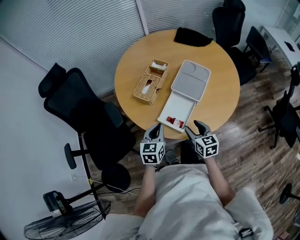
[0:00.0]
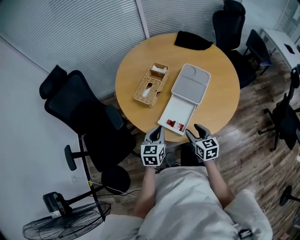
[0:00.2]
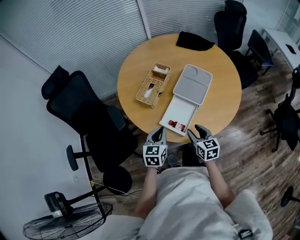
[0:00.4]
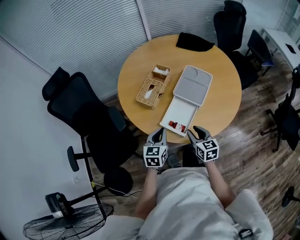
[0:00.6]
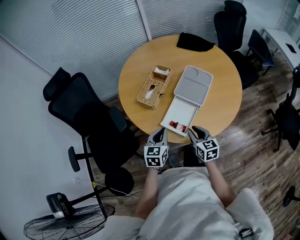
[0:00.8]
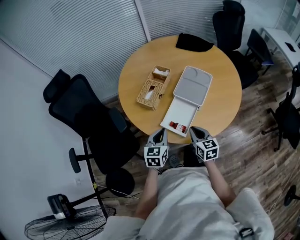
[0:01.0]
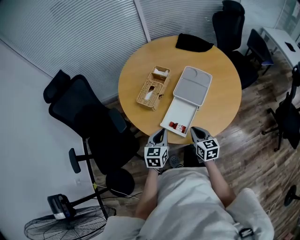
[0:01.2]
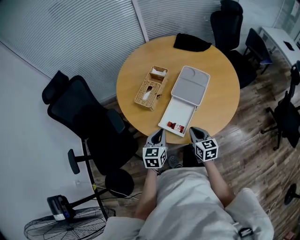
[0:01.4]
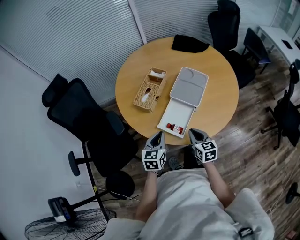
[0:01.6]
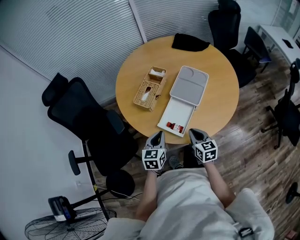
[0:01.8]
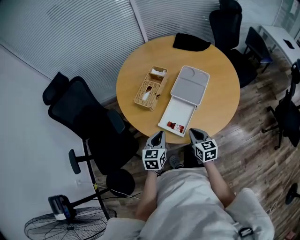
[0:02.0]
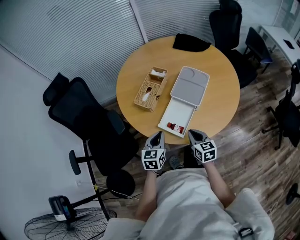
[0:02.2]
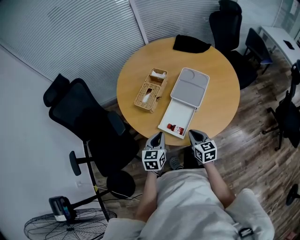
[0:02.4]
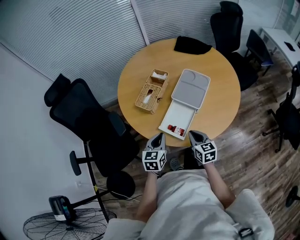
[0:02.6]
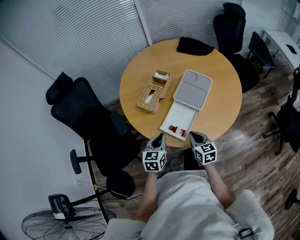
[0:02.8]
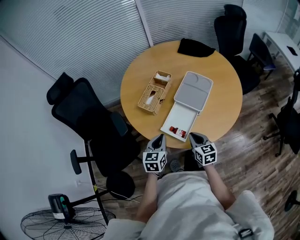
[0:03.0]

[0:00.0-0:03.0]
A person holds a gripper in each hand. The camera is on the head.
0.0 to 1.6 s: The right gripper closes up.
1.6 to 3.0 s: Both grippers stay about where they are.

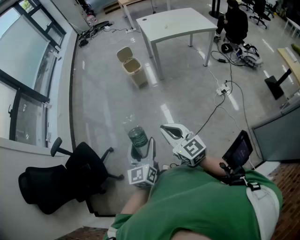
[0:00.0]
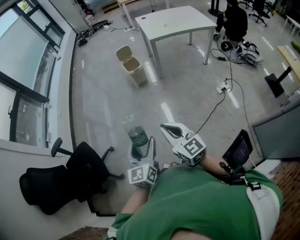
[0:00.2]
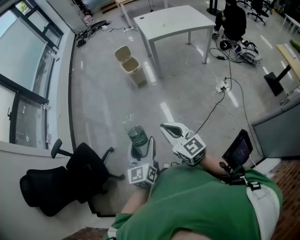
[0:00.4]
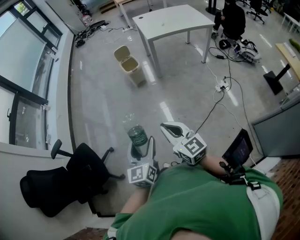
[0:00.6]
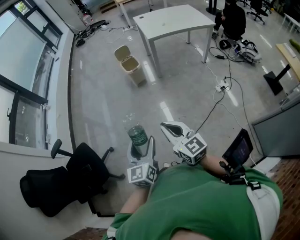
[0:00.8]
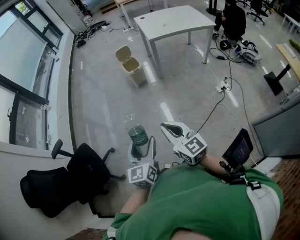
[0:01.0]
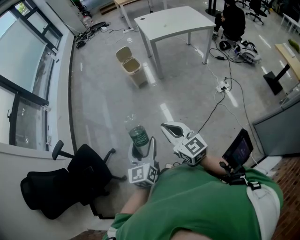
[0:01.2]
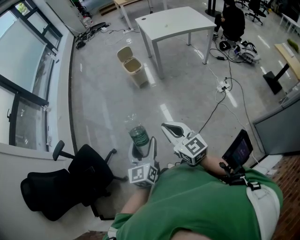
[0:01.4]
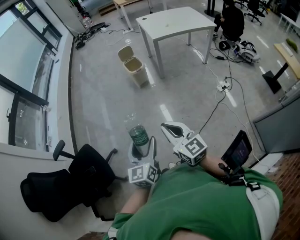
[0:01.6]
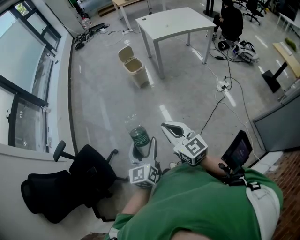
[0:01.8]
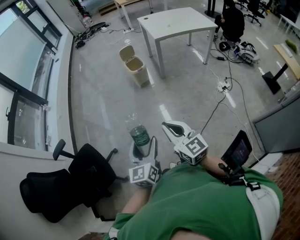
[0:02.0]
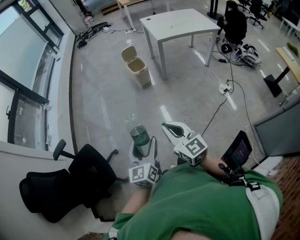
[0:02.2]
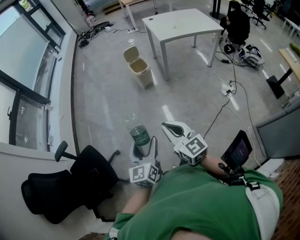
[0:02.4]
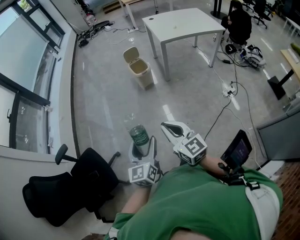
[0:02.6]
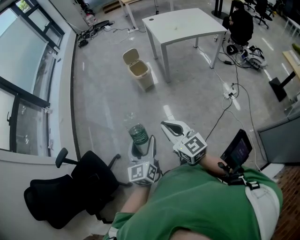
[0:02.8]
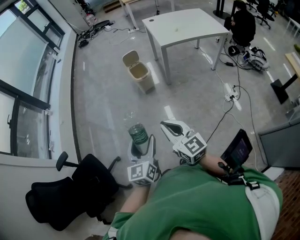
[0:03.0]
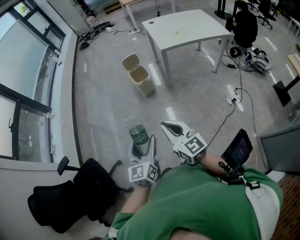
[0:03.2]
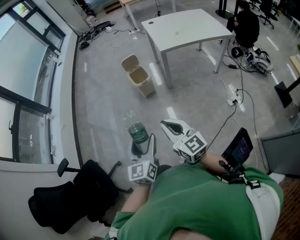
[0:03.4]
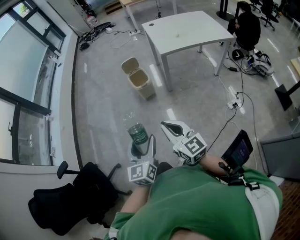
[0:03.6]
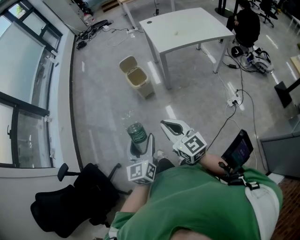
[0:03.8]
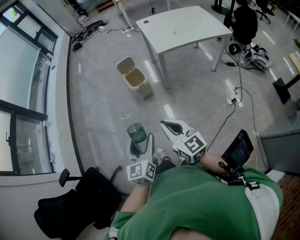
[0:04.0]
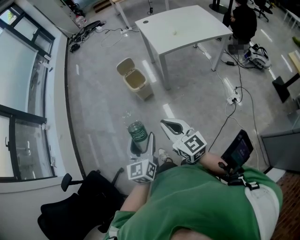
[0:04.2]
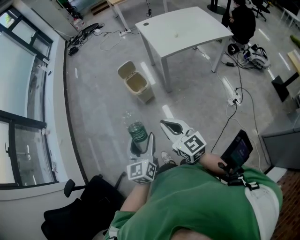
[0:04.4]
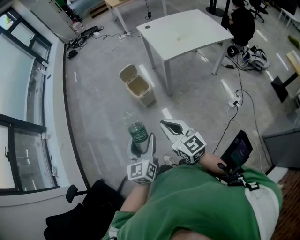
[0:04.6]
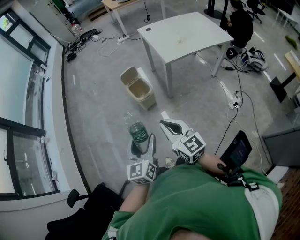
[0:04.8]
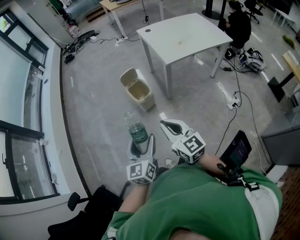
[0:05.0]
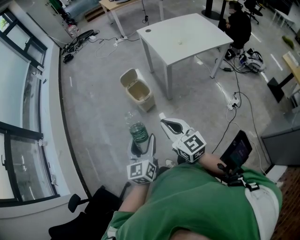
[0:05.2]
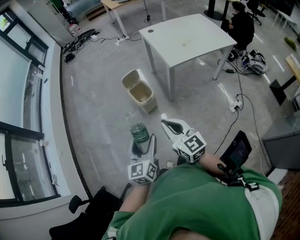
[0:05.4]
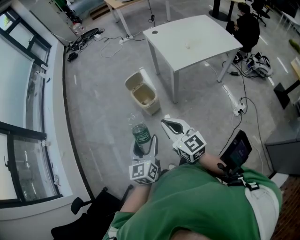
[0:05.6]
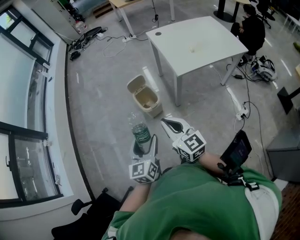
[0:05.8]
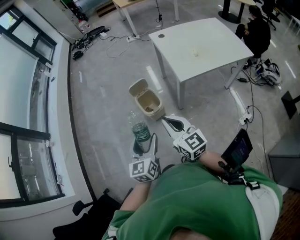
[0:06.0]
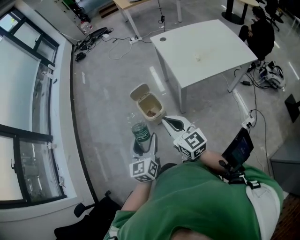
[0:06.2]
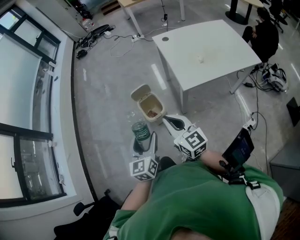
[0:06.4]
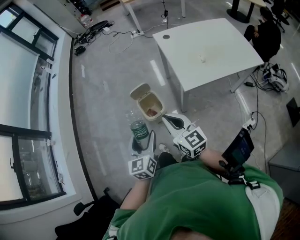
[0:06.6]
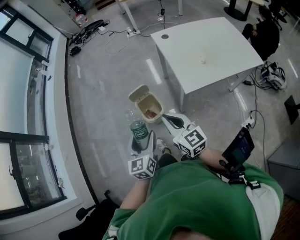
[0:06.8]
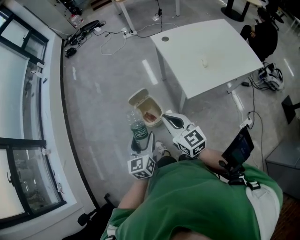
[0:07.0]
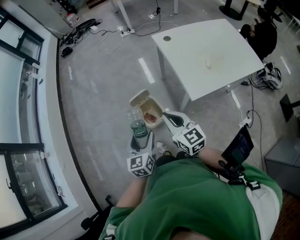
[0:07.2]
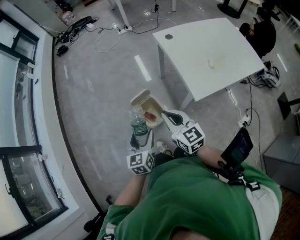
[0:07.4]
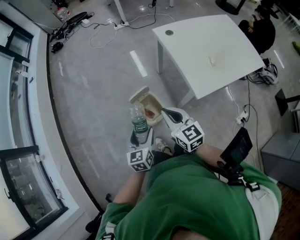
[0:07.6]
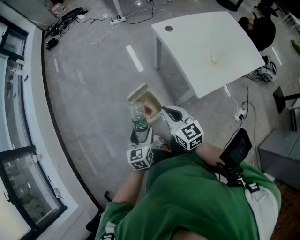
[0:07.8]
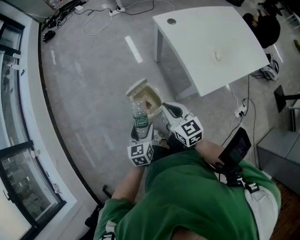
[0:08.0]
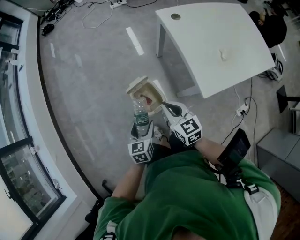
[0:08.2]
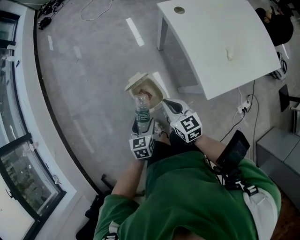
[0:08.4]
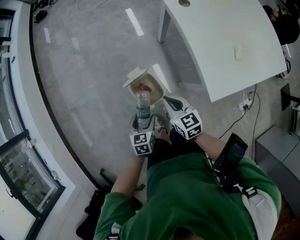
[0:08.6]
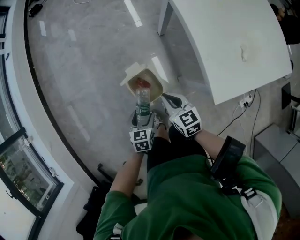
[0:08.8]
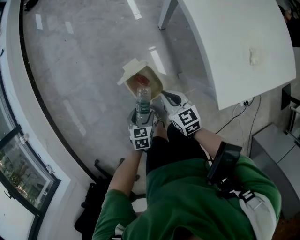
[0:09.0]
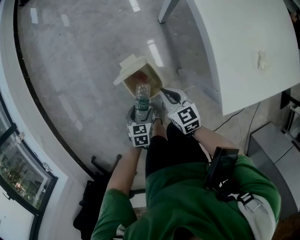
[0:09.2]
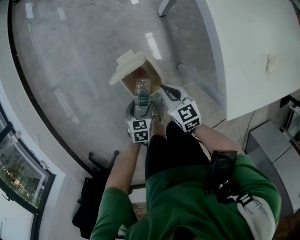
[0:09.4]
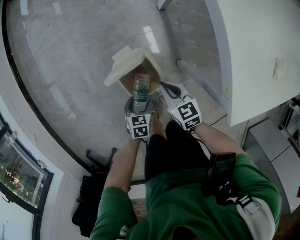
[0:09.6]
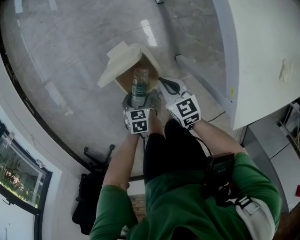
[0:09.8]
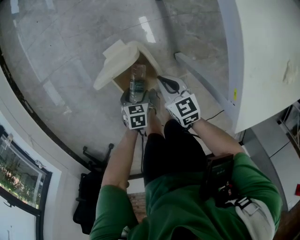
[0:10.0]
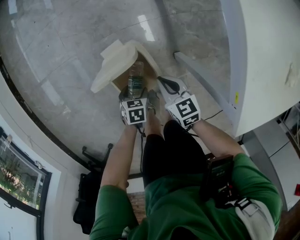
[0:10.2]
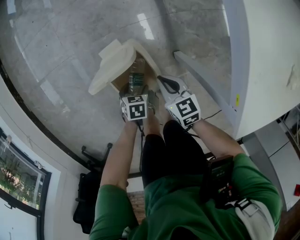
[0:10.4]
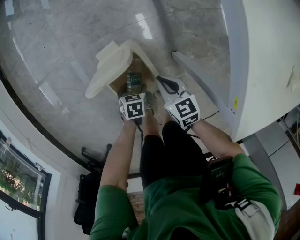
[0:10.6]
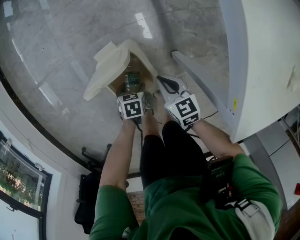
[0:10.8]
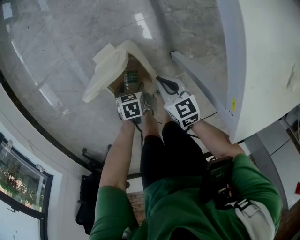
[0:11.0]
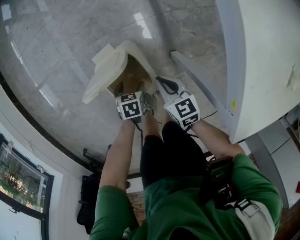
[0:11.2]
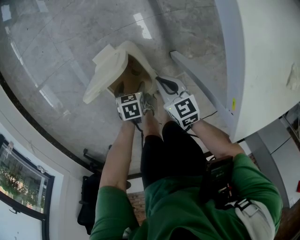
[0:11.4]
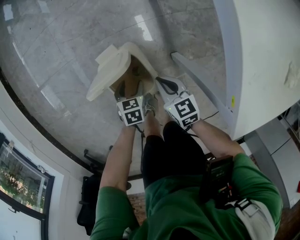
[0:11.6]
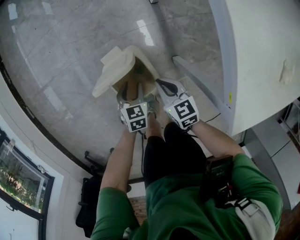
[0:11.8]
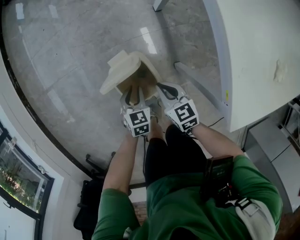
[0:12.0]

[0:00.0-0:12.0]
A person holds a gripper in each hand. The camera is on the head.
0.0 to 1.6 s: The two grippers go some 5 cm to the left.
1.6 to 3.0 s: Both grippers travel together forward, about 15 cm.
3.0 to 4.4 s: The two grippers go approximately 20 cm forward.
4.4 to 6.0 s: The grippers both shift forward by roughly 25 cm.
6.0 to 7.6 s: The right gripper goes roughly 25 cm forward. Meanwhile the left gripper shifts some 25 cm forward and downward.
7.6 to 9.0 s: The grippers both shift downward by some 25 cm. The right gripper changes its angle by about 20 degrees, while the left gripper angles its fingers downward, by some 30 degrees.
9.0 to 10.4 s: Both grippers travel together downward, roughly 20 cm. The left gripper swivels approximately 20 degrees.
10.4 to 12.0 s: The left gripper travels upward by about 10 cm, rotates roughly 30 degrees, and closes its fingers. The right gripper moves approximately 5 cm.

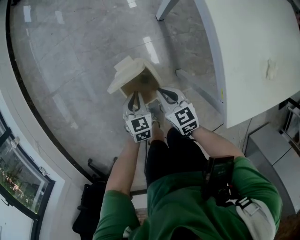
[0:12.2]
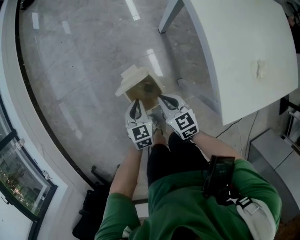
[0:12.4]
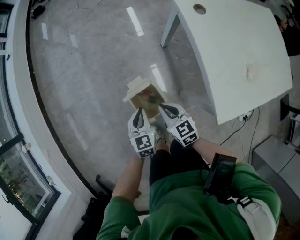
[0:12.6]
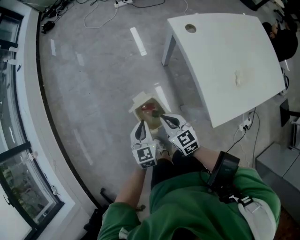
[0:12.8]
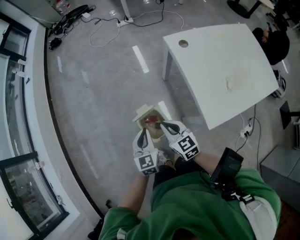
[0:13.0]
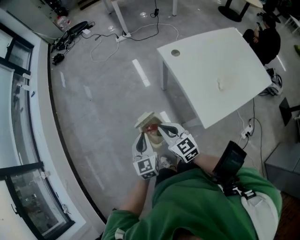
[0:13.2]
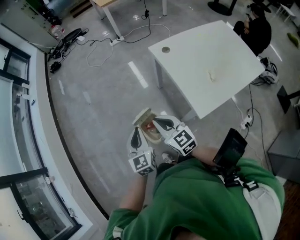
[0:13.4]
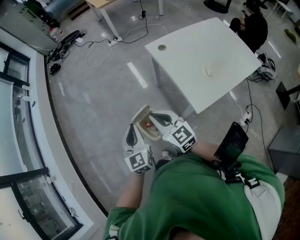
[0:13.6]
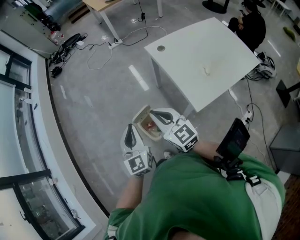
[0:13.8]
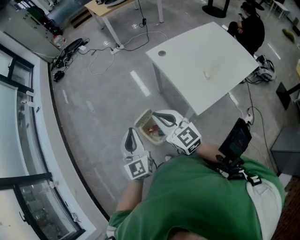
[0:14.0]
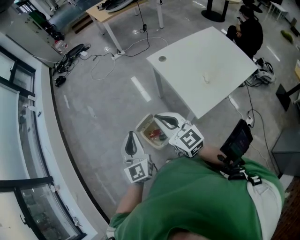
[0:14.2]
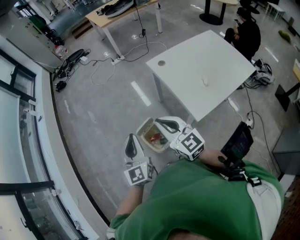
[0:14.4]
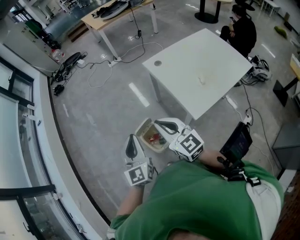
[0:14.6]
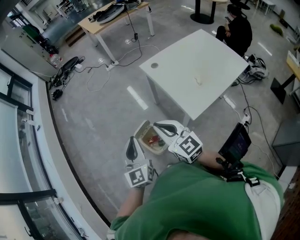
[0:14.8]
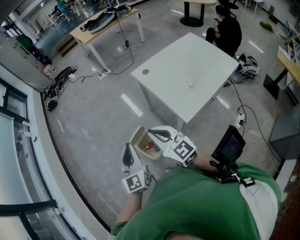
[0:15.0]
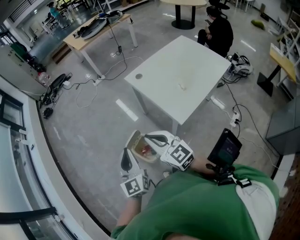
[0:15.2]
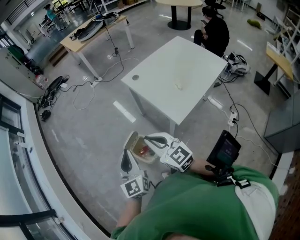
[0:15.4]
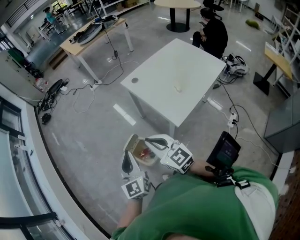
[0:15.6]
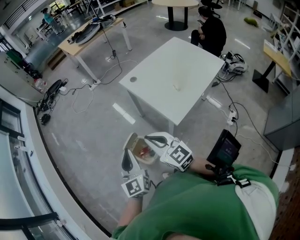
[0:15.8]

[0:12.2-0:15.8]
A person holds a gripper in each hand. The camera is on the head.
12.2 to 14.0 s: Both grippers travel together upward, some 40 cm. The left gripper tips its fingers upward by approximately 40 degrees. Meanwhile the right gripper points its fingers about 30 degrees further upward.
14.0 to 15.8 s: The right gripper travels backward by about 5 cm. Meanwhile the left gripper moves about 5 cm.

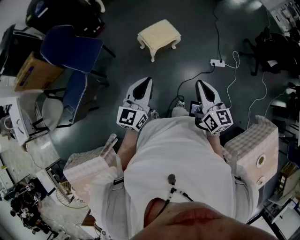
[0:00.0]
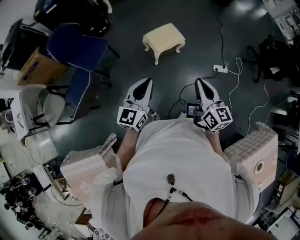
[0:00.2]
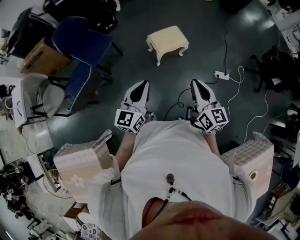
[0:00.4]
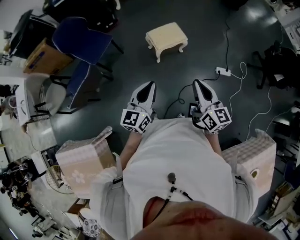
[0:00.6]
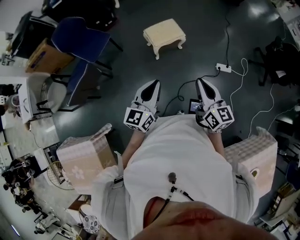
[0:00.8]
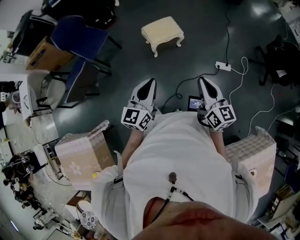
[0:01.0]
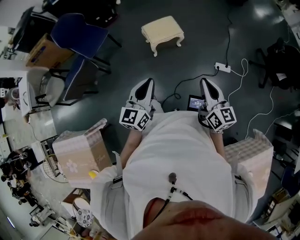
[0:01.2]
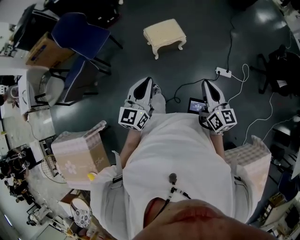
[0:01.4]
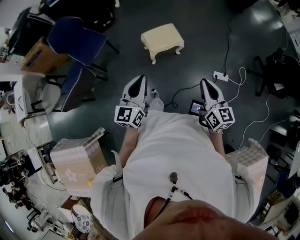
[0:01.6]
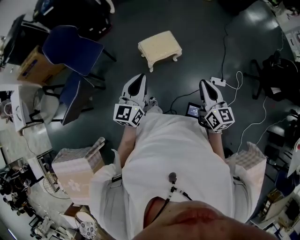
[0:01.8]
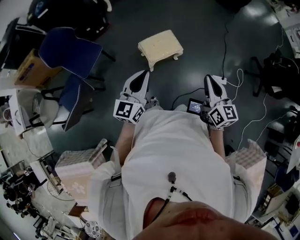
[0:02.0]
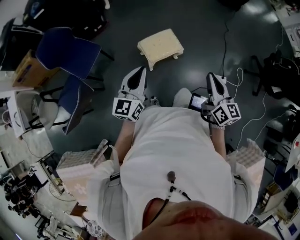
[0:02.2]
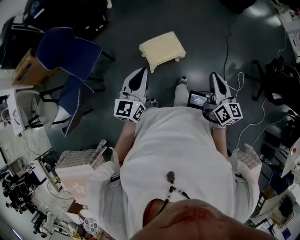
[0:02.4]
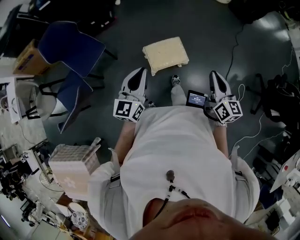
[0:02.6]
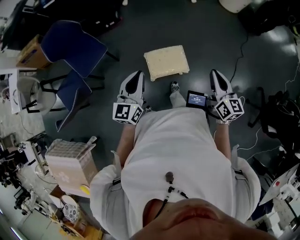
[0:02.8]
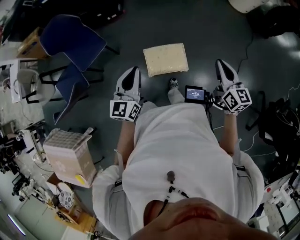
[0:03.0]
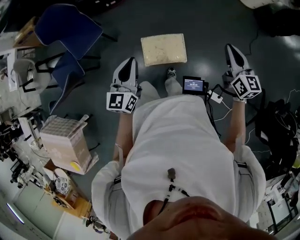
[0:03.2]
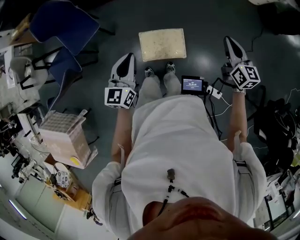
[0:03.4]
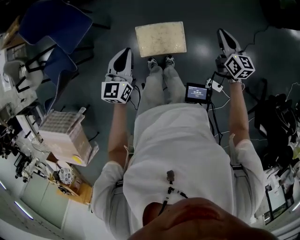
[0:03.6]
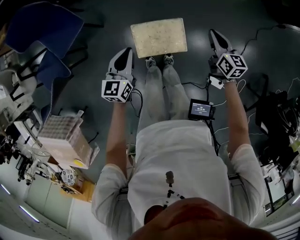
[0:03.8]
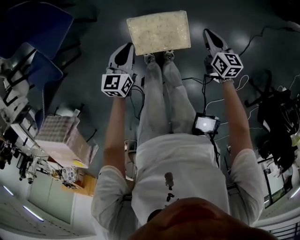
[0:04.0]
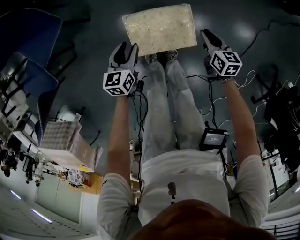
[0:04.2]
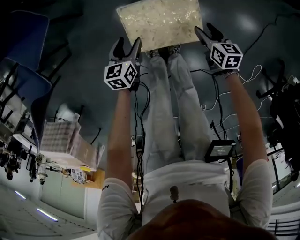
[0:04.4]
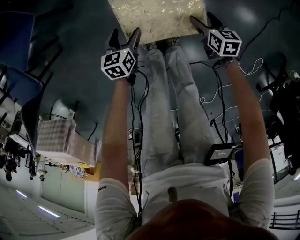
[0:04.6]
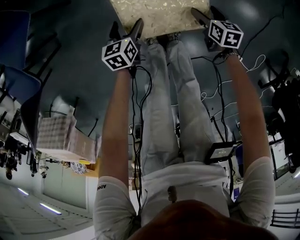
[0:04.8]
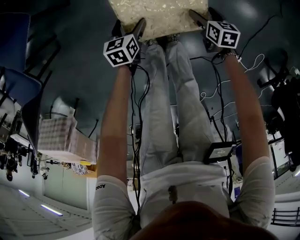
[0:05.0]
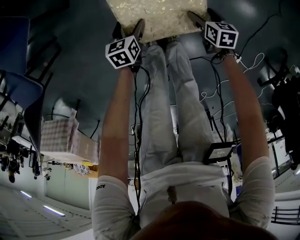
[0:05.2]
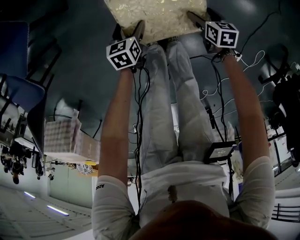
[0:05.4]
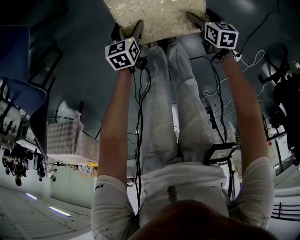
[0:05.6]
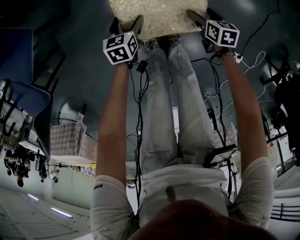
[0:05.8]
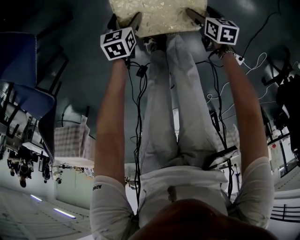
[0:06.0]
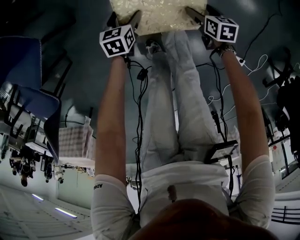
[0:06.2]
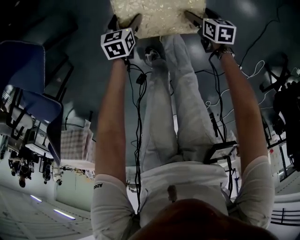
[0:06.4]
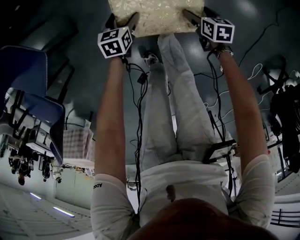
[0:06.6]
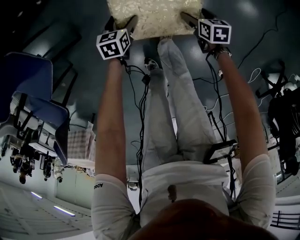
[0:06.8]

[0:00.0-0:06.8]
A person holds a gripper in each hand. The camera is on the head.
0.0 to 1.4 s: The two grippers go approximately 15 cm to the right.
1.4 to 2.8 s: The pair of grippers is taken forward, roughly 40 cm.
2.8 to 4.0 s: The grippers both shift downward and forward by some 40 cm. The left gripper rotates some 20 degrees. Meanwhile the right gripper rotates approximately 30 degrees.
4.0 to 5.4 s: The grippers both shift downward by roughly 30 cm. The right gripper turns by approximately 30 degrees, and opens; the left gripper rotates about 30 degrees, and opens up.
5.4 to 6.8 s: Both grippers move forward, some 25 cm.
